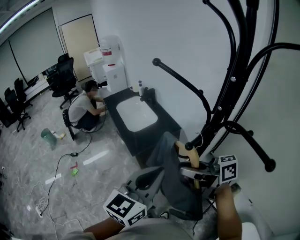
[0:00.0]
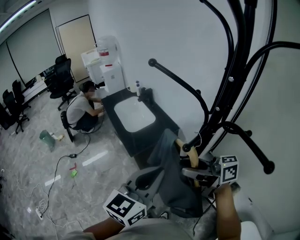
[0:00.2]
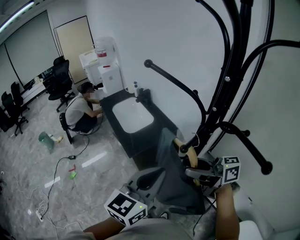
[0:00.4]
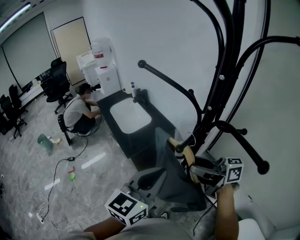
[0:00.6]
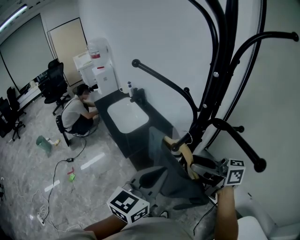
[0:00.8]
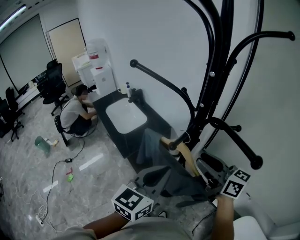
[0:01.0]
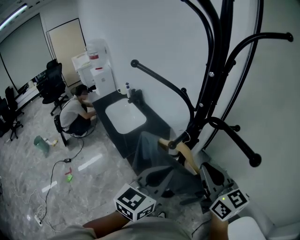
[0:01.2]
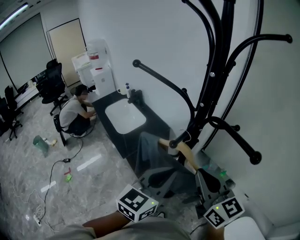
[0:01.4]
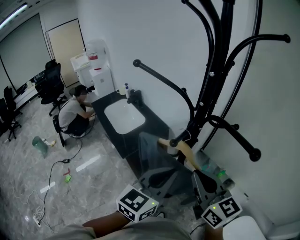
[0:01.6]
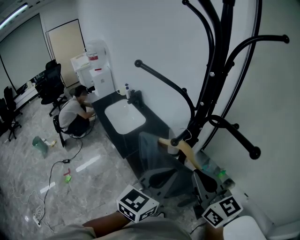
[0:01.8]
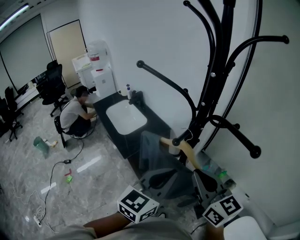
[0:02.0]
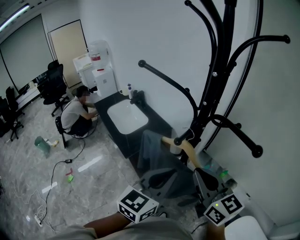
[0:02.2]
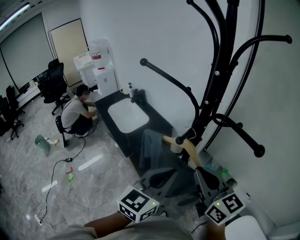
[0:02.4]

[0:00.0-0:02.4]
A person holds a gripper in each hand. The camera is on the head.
0:00.0 to 0:01.2: The left gripper moves some 10 cm, while the right gripper changes place by approximately 10 cm, rotates about 70 degrees, and opens, then closes again.
0:01.2 to 0:02.4: The grippers stay close to where they were, moving slightly.

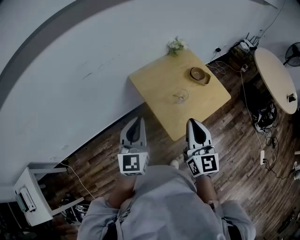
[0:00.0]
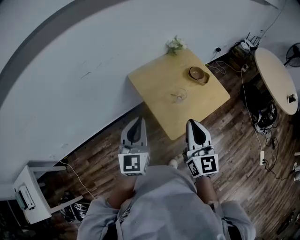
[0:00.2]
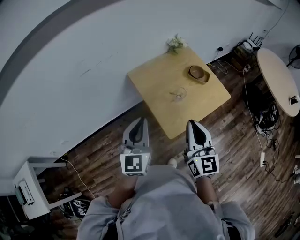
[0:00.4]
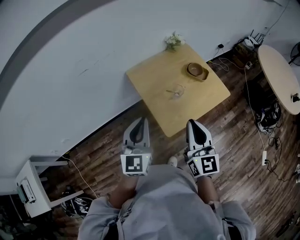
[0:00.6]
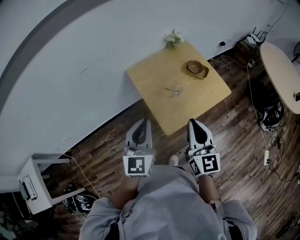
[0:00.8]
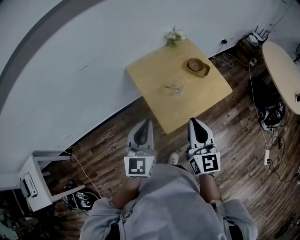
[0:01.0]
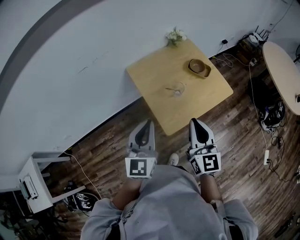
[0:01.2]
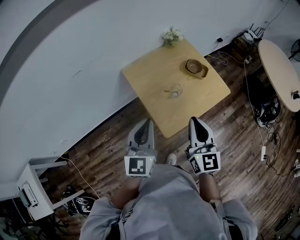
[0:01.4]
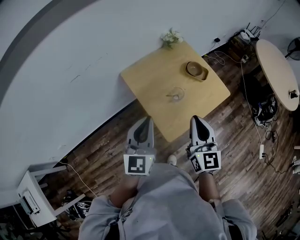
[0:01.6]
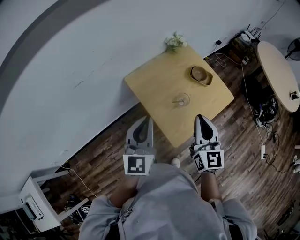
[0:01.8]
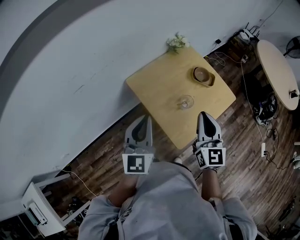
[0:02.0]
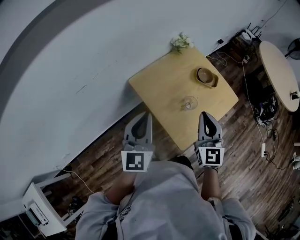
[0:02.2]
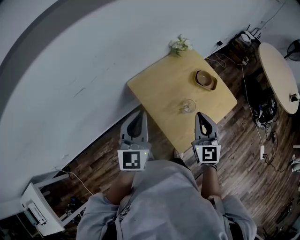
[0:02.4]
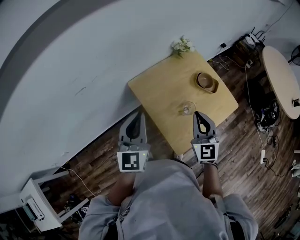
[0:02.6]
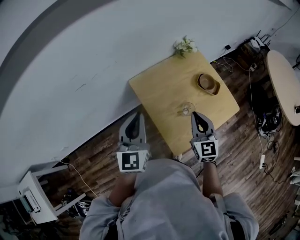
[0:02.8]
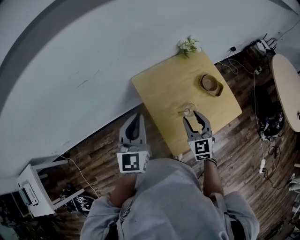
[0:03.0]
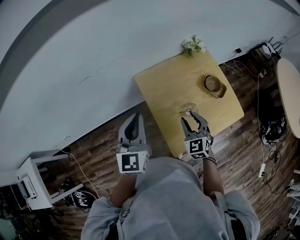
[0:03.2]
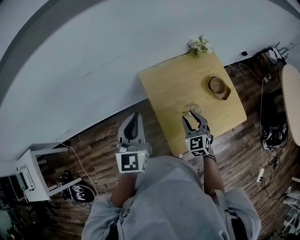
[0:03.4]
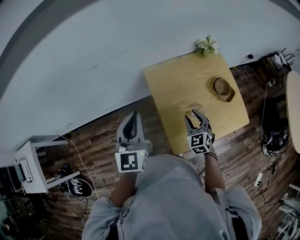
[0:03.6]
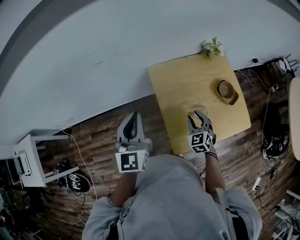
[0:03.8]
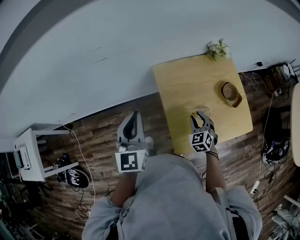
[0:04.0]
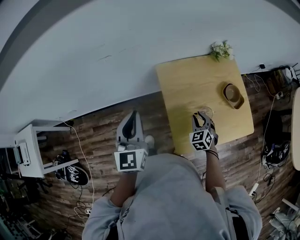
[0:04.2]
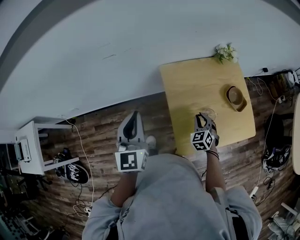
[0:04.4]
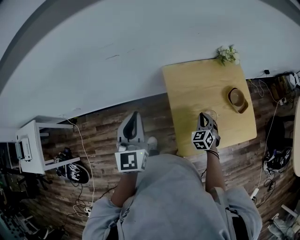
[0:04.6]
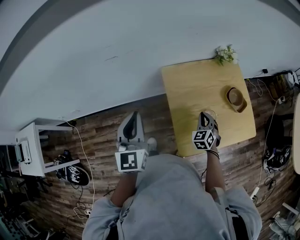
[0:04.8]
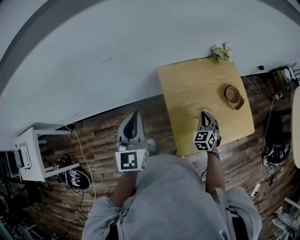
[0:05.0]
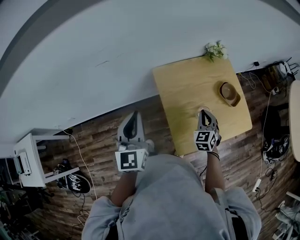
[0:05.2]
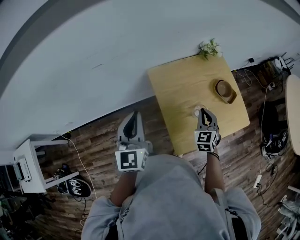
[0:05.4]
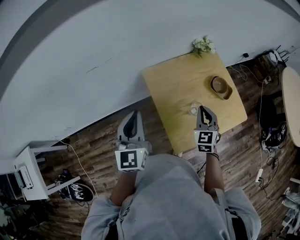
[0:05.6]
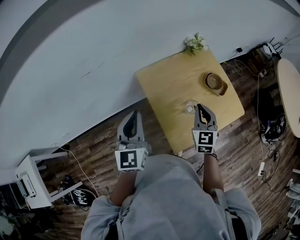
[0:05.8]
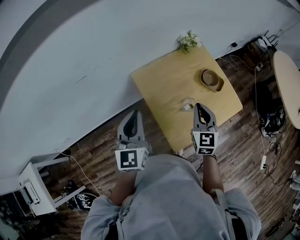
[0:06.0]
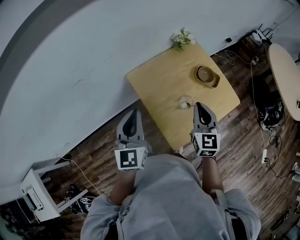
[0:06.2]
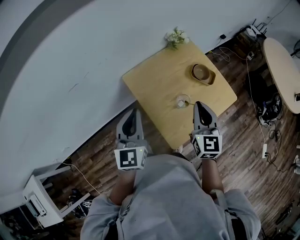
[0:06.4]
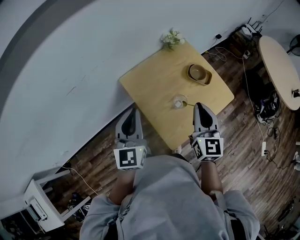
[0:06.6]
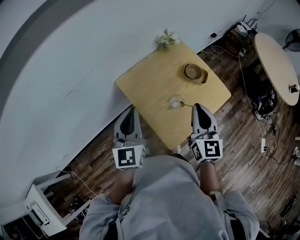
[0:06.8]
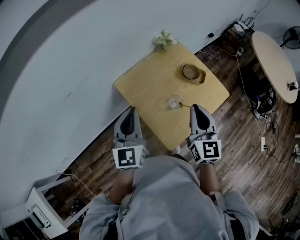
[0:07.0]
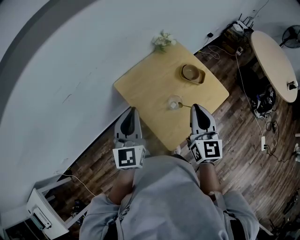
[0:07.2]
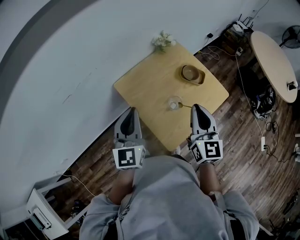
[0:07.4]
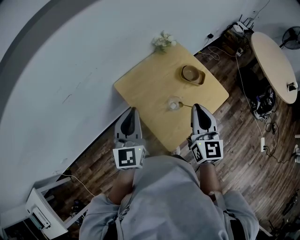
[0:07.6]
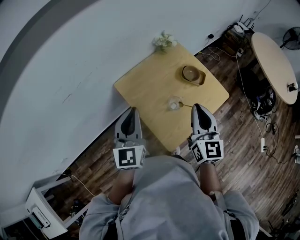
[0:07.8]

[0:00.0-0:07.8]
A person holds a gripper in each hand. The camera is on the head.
0:00.0 to 0:01.6: The right gripper goes roughly 10 cm to the right and forward. Meanwhile the left gripper heads to the right, covering roughly 10 cm.
0:01.6 to 0:03.2: The left gripper goes some 10 cm forward and to the left. The right gripper is displaced downward and forward by approximately 20 cm, changes its angle by roughly 40 degrees, and opens its fingers.
0:03.2 to 0:04.6: The left gripper heads to the left, covering roughly 10 cm, while the right gripper heads downward, covering approximately 10 cm, and closes its fingers.
0:04.6 to 0:06.2: The right gripper is displaced upward by approximately 20 cm, and rotates some 40 degrees; the left gripper shifts some 10 cm to the right, and swivels roughly 20 degrees.
0:06.2 to 0:07.8: The right gripper travels upward by about 5 cm.

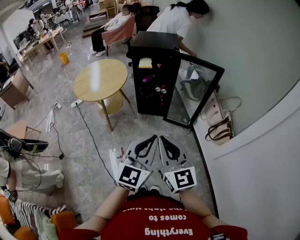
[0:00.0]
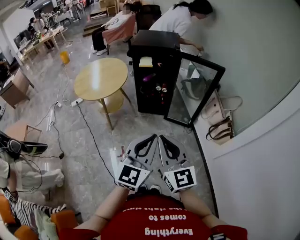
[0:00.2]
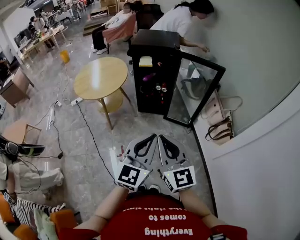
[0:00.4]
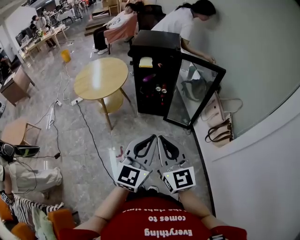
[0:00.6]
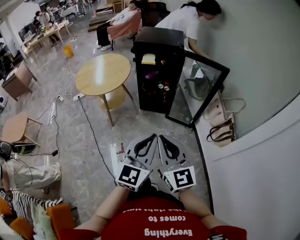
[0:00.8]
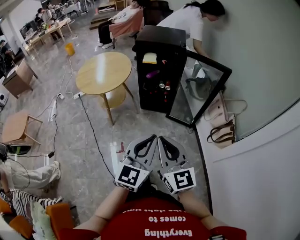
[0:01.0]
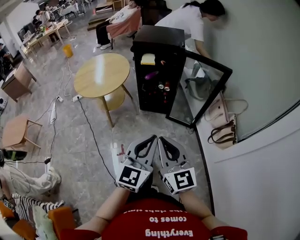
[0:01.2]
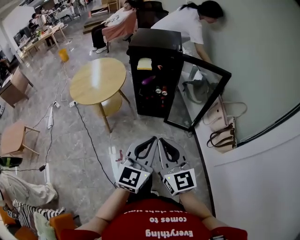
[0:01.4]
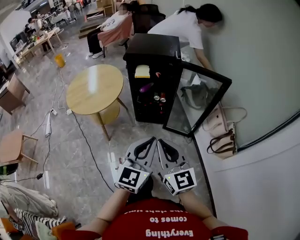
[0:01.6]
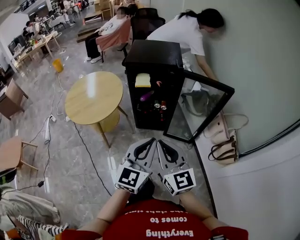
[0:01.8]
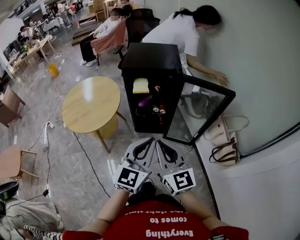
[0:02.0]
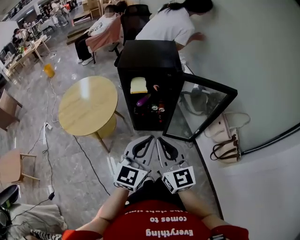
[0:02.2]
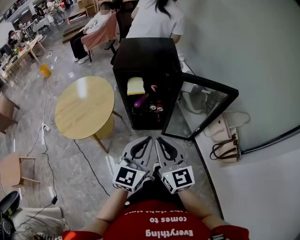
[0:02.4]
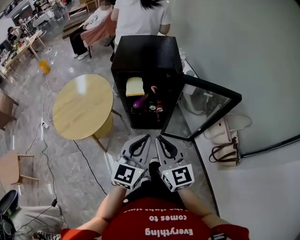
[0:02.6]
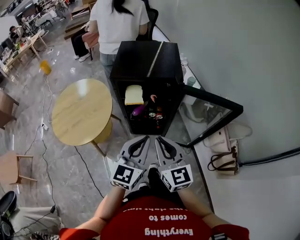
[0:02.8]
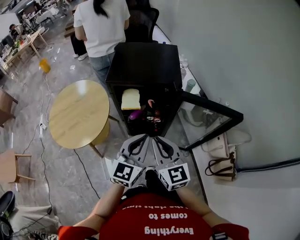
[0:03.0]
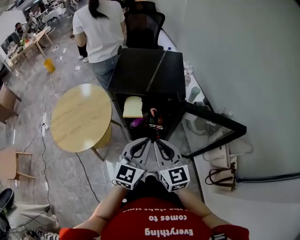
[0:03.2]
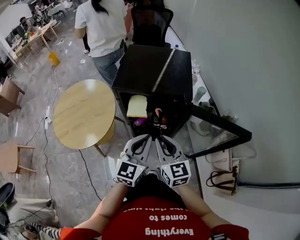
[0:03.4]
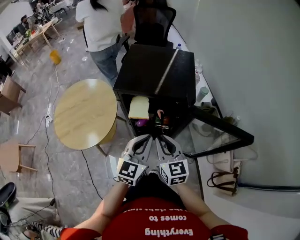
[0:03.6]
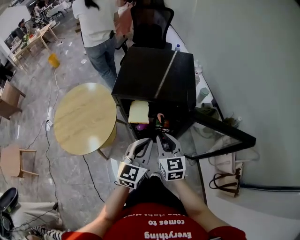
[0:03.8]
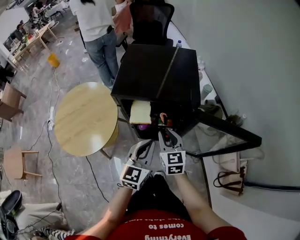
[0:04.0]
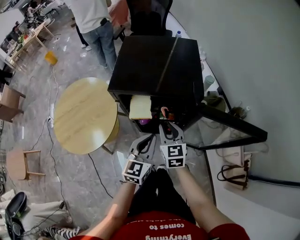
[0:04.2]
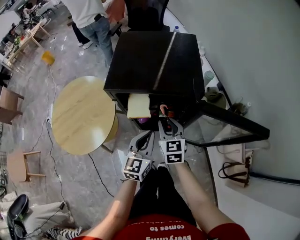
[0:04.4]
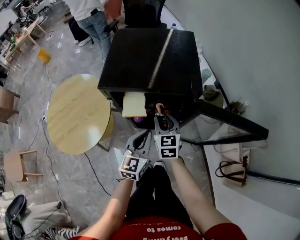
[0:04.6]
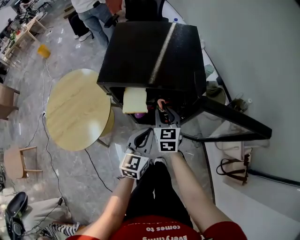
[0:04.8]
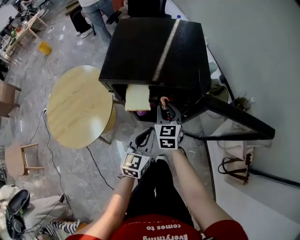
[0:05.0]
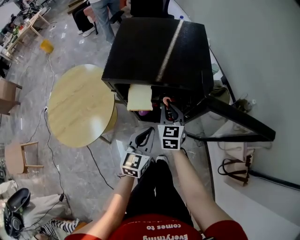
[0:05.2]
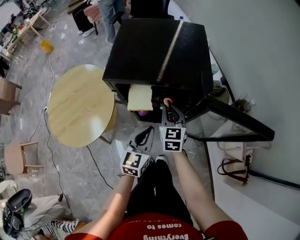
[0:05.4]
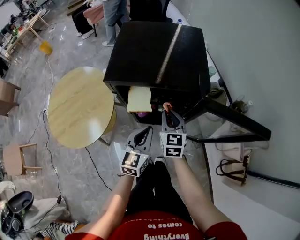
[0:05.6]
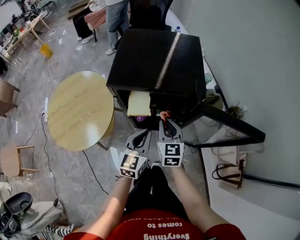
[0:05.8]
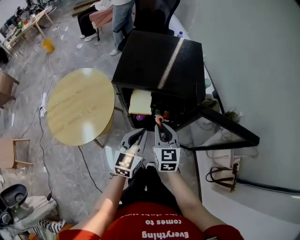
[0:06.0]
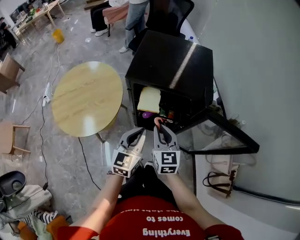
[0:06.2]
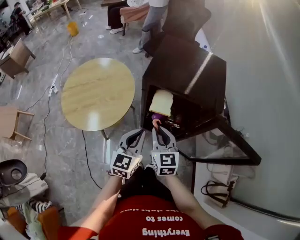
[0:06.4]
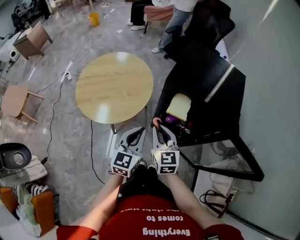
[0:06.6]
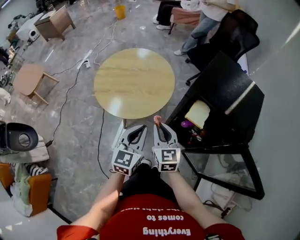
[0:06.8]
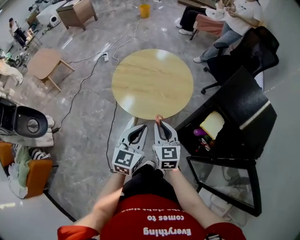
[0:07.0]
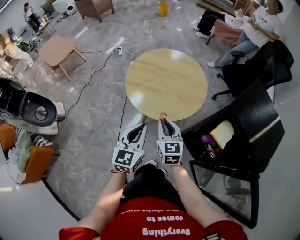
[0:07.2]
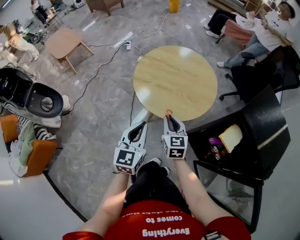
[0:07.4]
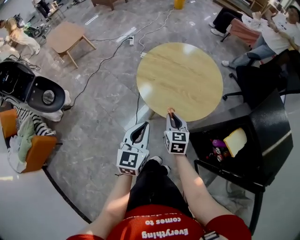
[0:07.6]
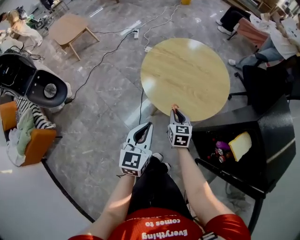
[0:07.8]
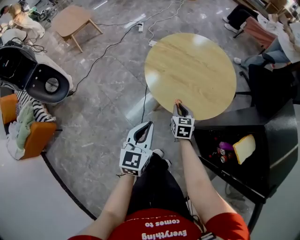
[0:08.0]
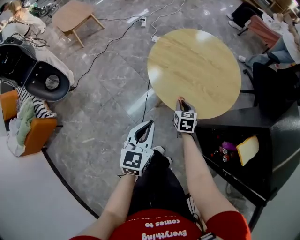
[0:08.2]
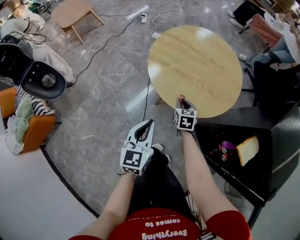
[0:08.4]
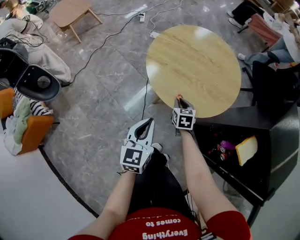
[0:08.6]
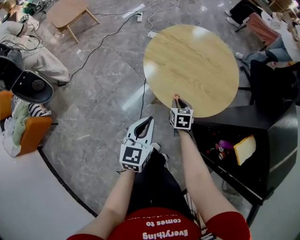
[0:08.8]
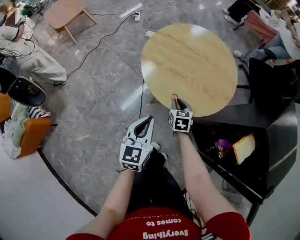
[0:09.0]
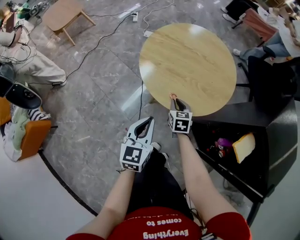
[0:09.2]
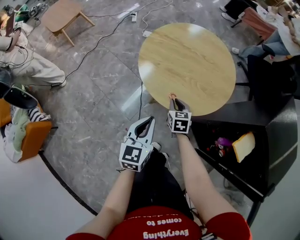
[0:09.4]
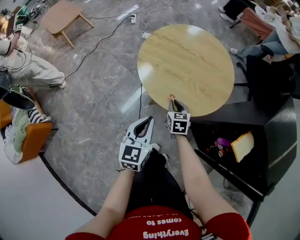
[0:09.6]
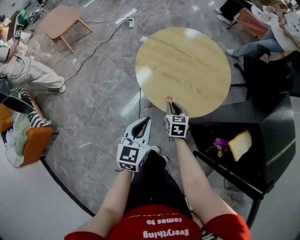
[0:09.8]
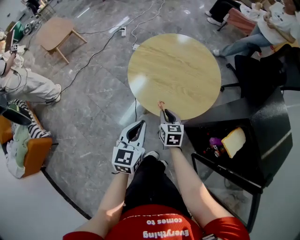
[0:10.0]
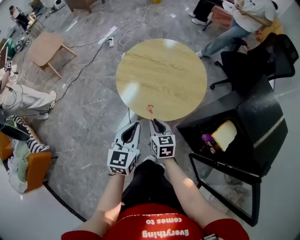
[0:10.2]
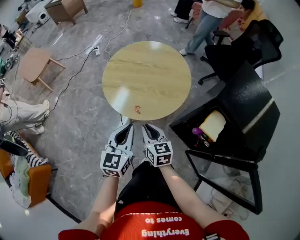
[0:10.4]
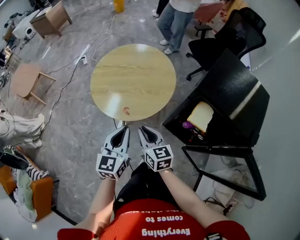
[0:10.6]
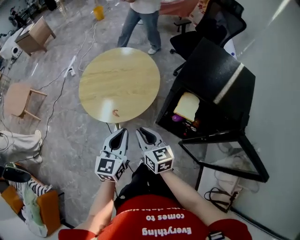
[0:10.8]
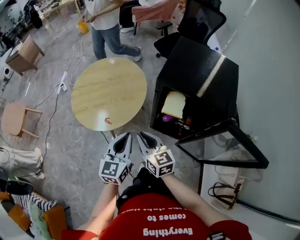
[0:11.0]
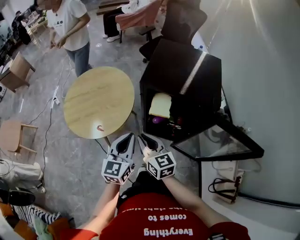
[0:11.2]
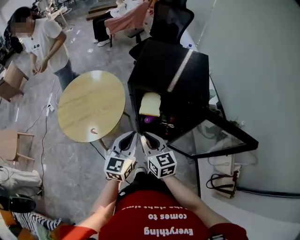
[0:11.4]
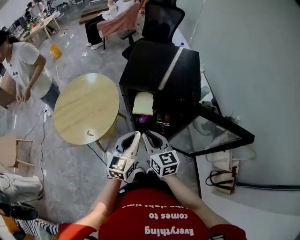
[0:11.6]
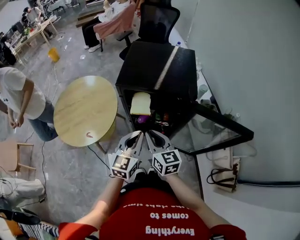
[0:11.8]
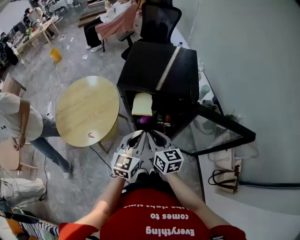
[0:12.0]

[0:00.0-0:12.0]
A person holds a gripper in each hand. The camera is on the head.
0:00.0 to 0:01.6: Both grippers travel together forward, about 15 cm.
0:01.6 to 0:03.0: Both grippers move forward, about 30 cm.
0:03.0 to 0:04.4: Both grippers travel together forward and downward, roughly 20 cm. The right gripper opens up.
0:04.4 to 0:06.0: The right gripper shifts by some 5 cm.
0:06.0 to 0:07.6: Both grippers are carried approximately 40 cm. The left gripper rotates some 60 degrees; the right gripper swivels some 50 degrees.
0:07.6 to 0:09.0: The right gripper is displaced downward and forward by approximately 15 cm, while the left gripper moves downward, roughly 10 cm.
0:09.0 to 0:10.4: The left gripper heads upward and to the right, covering roughly 10 cm; the right gripper shifts approximately 20 cm upward and backward, and rotates some 20 degrees.
0:10.4 to 0:12.0: The right gripper moves roughly 35 cm, and rotates some 40 degrees. The left gripper moves about 35 cm, and turns by some 40 degrees.

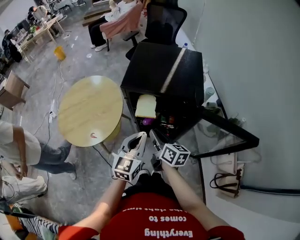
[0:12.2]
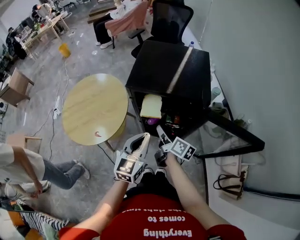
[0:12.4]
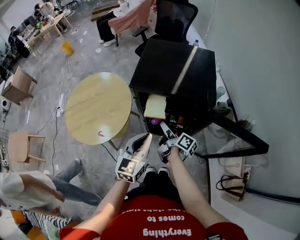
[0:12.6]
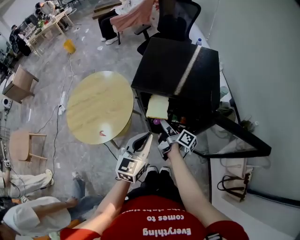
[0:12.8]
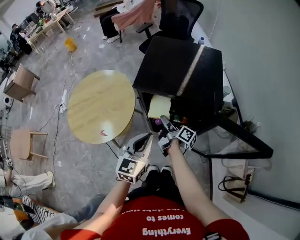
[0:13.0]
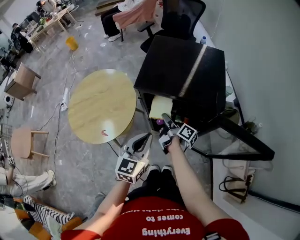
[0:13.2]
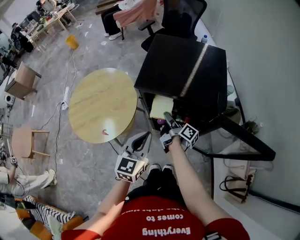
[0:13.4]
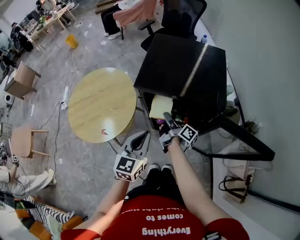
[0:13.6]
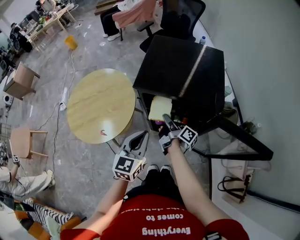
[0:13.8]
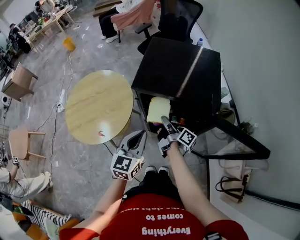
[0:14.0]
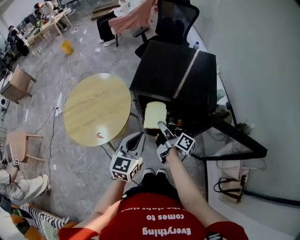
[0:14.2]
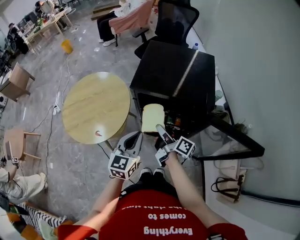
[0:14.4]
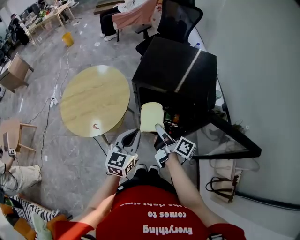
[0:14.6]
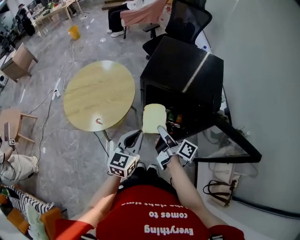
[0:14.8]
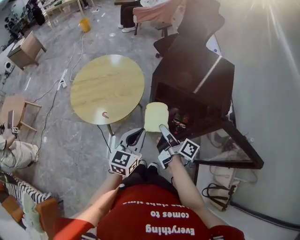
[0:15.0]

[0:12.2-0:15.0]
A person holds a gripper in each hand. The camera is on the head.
0:12.2 to 0:13.6: The right gripper moves forward and downward, about 15 cm, twists some 40 degrees clockwise, seen from behind, and opens, then closes again, while the left gripper changes place by roughly 5 cm.
0:13.6 to 0:15.0: The right gripper moves backward and upward, about 15 cm, and swivels some 20 degrees; the left gripper is displaced backward by some 5 cm.
